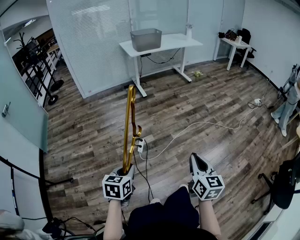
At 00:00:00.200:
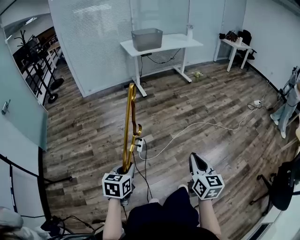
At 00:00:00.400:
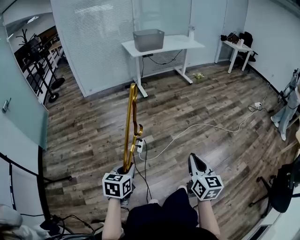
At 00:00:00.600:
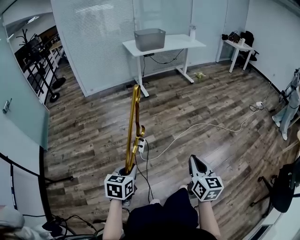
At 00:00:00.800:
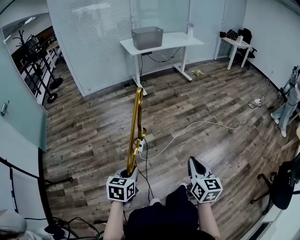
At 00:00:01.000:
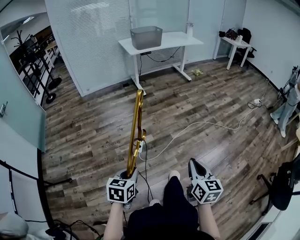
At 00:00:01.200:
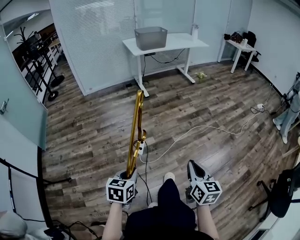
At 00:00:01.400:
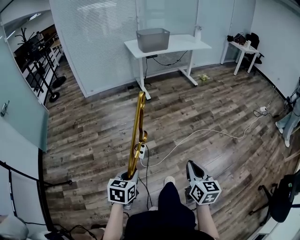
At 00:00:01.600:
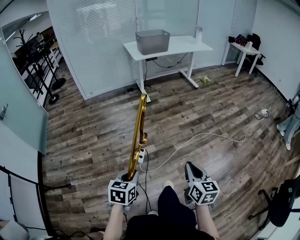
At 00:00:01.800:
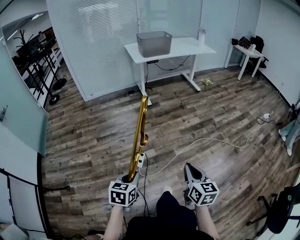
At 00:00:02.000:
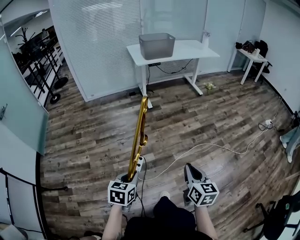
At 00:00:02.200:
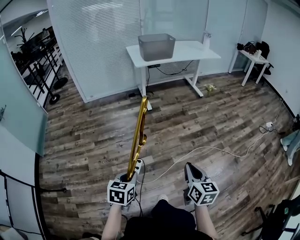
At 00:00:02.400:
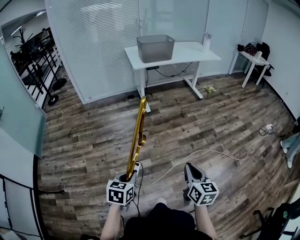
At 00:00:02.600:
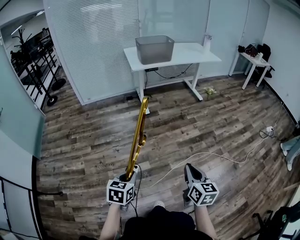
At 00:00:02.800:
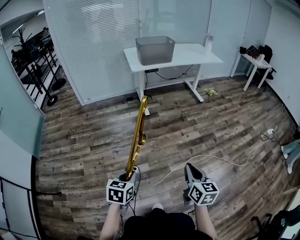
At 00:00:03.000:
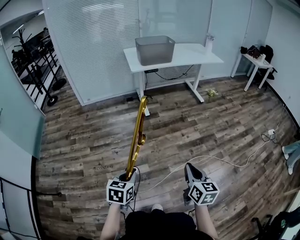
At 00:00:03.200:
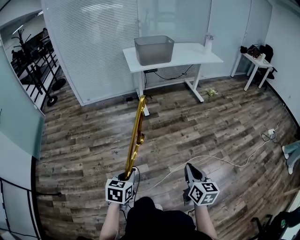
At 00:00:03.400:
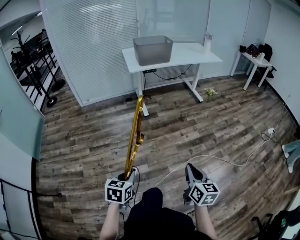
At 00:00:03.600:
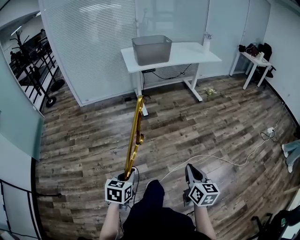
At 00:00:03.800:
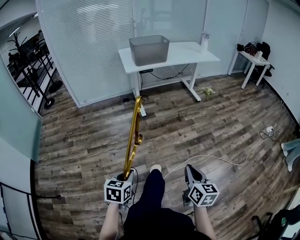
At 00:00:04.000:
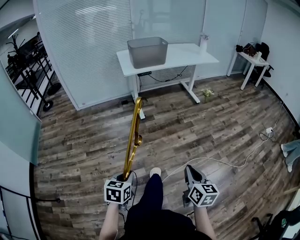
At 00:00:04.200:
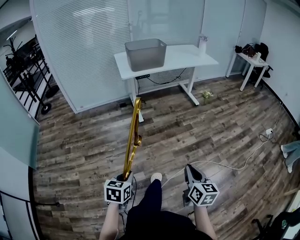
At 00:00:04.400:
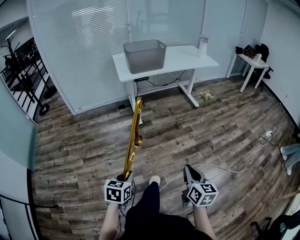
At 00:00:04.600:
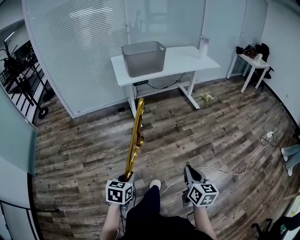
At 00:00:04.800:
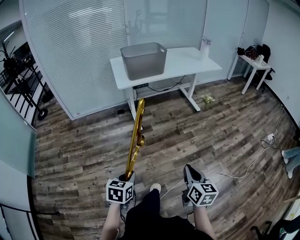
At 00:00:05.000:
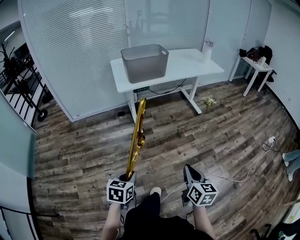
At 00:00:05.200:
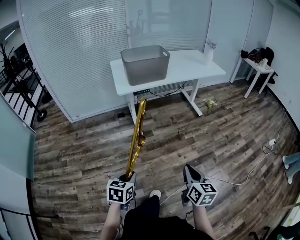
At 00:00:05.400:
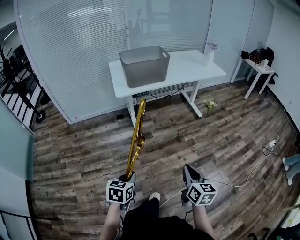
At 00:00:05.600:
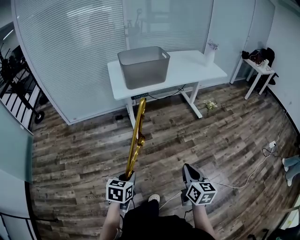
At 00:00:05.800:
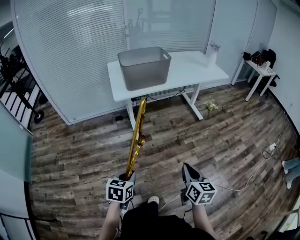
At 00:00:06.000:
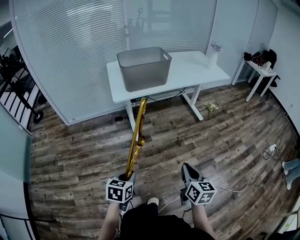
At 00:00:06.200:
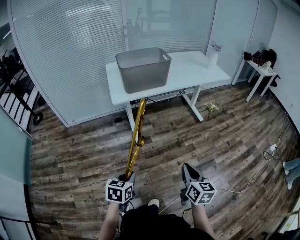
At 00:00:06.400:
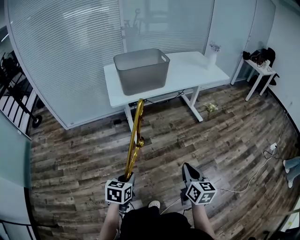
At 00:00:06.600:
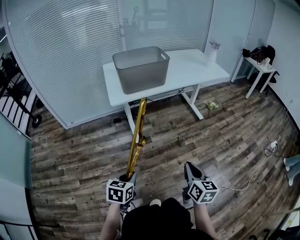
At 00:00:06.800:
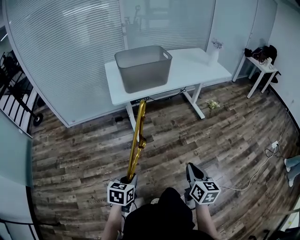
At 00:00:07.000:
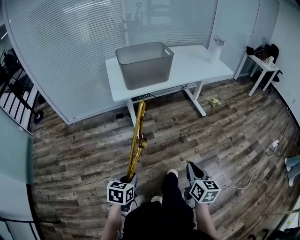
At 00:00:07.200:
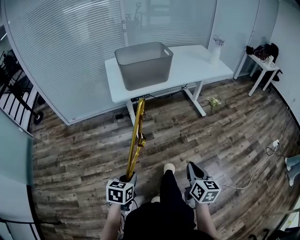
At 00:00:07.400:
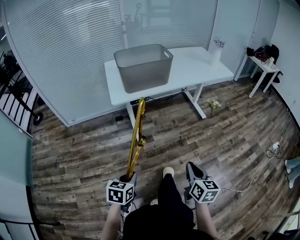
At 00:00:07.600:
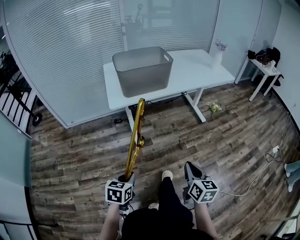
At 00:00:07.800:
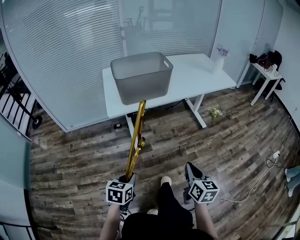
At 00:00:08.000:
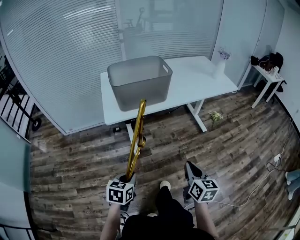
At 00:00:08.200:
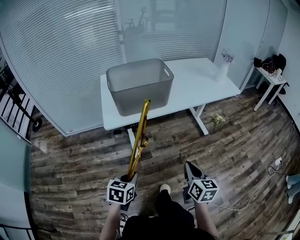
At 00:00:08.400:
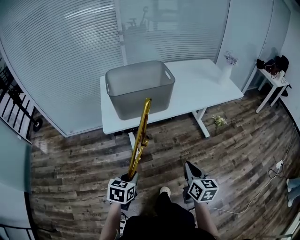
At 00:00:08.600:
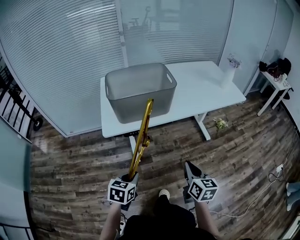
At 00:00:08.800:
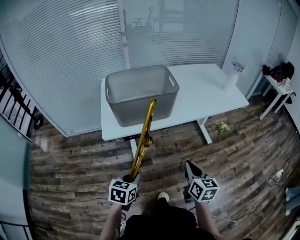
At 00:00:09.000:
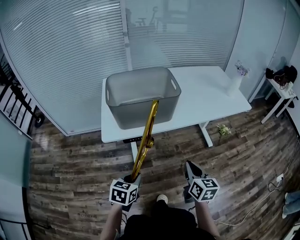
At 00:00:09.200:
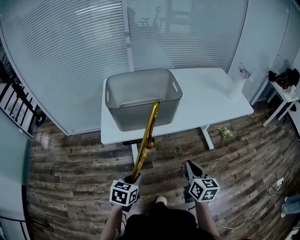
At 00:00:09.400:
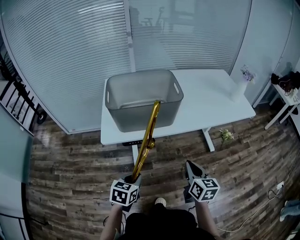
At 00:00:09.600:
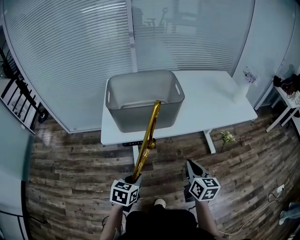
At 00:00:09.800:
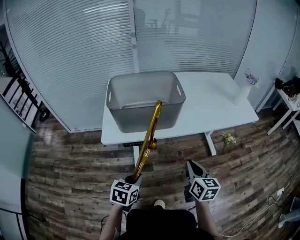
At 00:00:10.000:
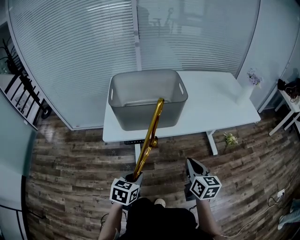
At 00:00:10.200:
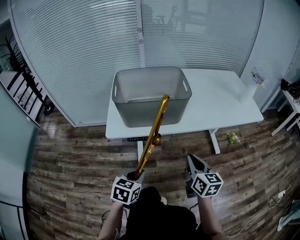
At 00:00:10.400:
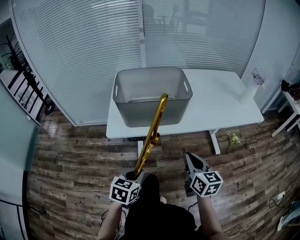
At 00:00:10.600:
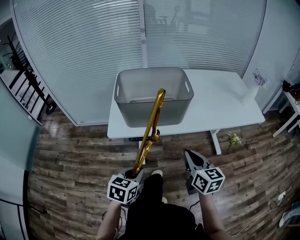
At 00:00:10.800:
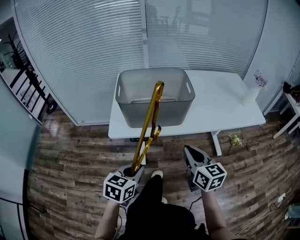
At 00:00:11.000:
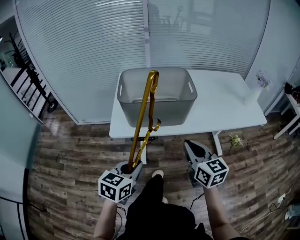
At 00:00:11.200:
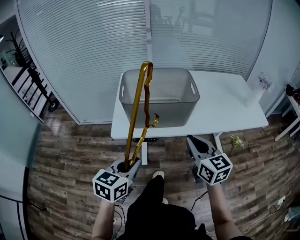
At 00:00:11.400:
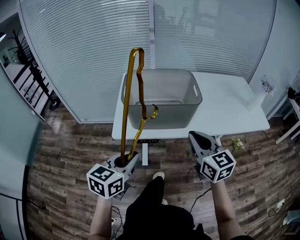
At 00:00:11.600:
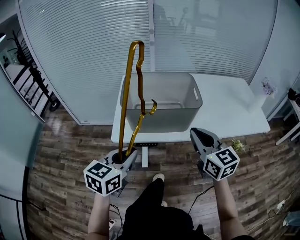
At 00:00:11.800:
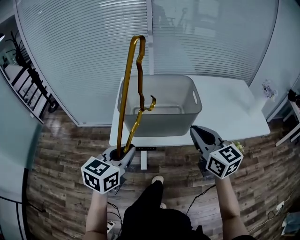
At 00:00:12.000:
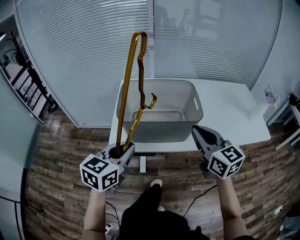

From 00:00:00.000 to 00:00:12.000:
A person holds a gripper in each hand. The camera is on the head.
From 00:00:00.000 to 00:00:01.600: The two grippers go roughly 15 cm forward.
From 00:00:01.600 to 00:00:03.000: The two grippers go roughly 25 cm forward.
From 00:00:03.000 to 00:00:04.400: The grippers both shift forward by approximately 10 cm.
From 00:00:04.400 to 00:00:06.000: The grippers both shift forward by about 30 cm.
From 00:00:06.000 to 00:00:07.600: Both grippers move forward, approximately 10 cm.
From 00:00:07.600 to 00:00:09.000: Both grippers move forward, about 25 cm.
From 00:00:09.000 to 00:00:10.400: The right gripper goes approximately 5 cm forward.
From 00:00:10.400 to 00:00:12.000: The grippers both shift upward and forward by approximately 20 cm. The right gripper changes its angle by some 20 degrees.

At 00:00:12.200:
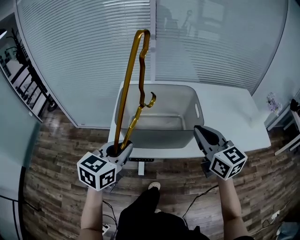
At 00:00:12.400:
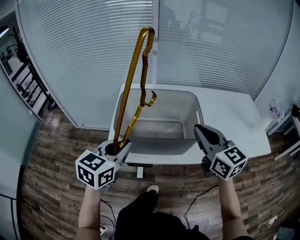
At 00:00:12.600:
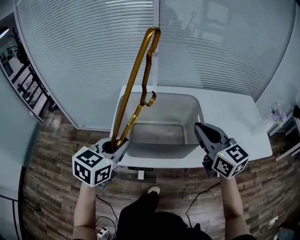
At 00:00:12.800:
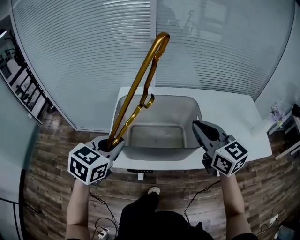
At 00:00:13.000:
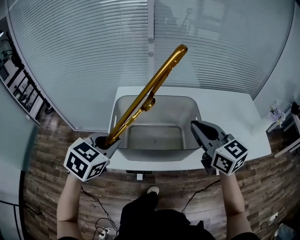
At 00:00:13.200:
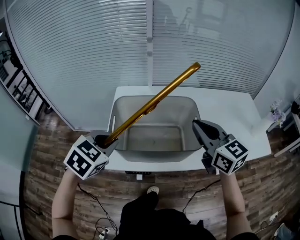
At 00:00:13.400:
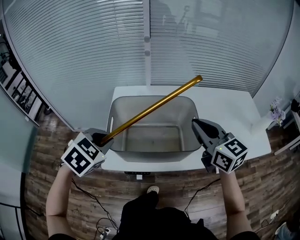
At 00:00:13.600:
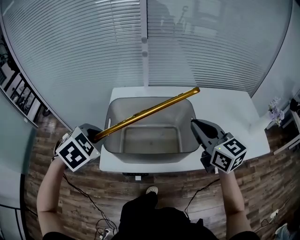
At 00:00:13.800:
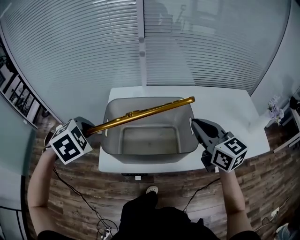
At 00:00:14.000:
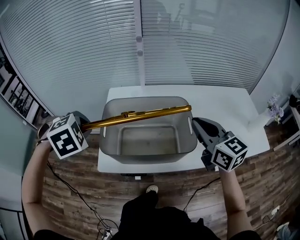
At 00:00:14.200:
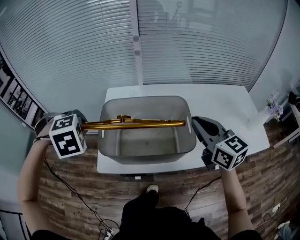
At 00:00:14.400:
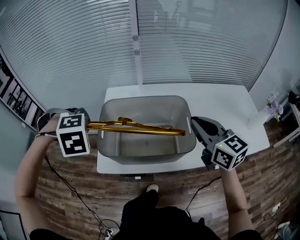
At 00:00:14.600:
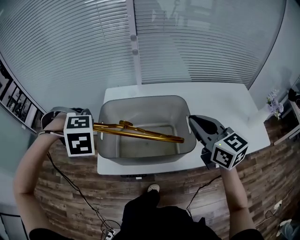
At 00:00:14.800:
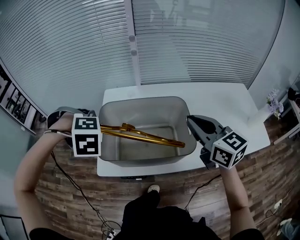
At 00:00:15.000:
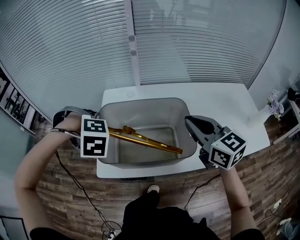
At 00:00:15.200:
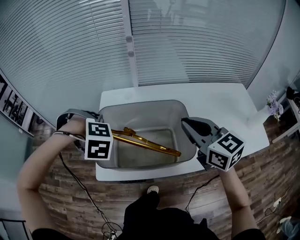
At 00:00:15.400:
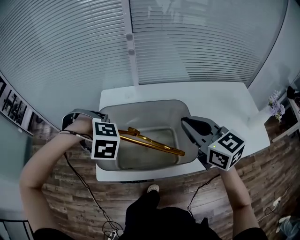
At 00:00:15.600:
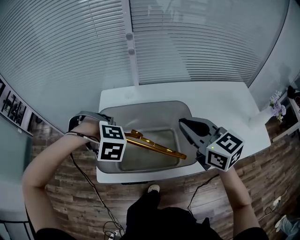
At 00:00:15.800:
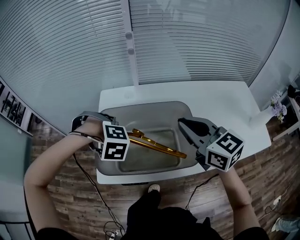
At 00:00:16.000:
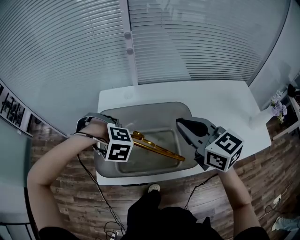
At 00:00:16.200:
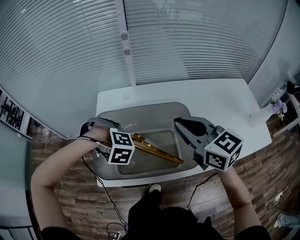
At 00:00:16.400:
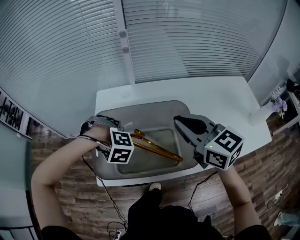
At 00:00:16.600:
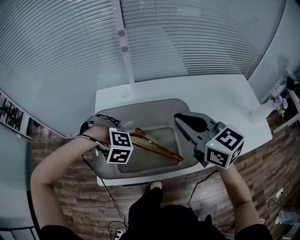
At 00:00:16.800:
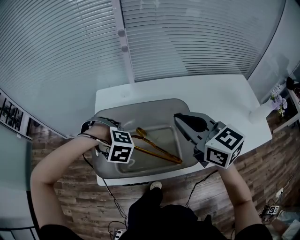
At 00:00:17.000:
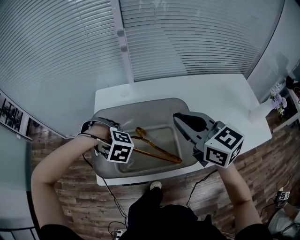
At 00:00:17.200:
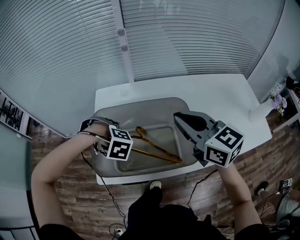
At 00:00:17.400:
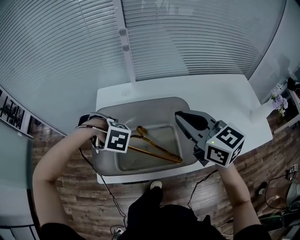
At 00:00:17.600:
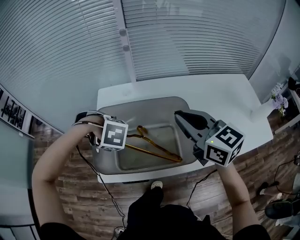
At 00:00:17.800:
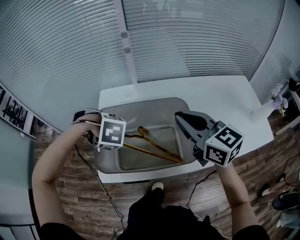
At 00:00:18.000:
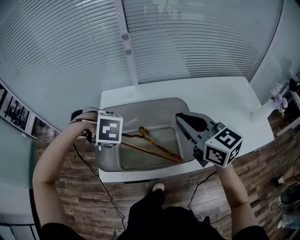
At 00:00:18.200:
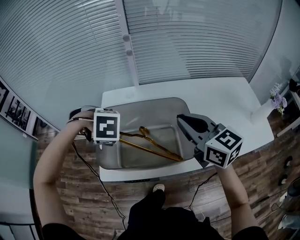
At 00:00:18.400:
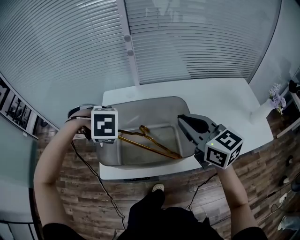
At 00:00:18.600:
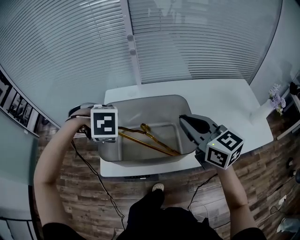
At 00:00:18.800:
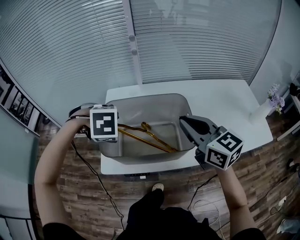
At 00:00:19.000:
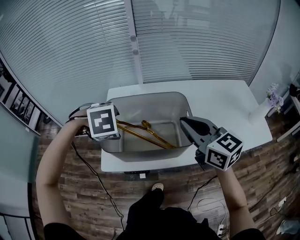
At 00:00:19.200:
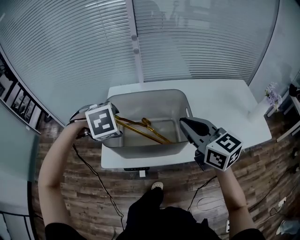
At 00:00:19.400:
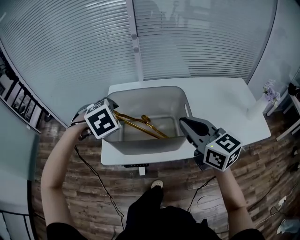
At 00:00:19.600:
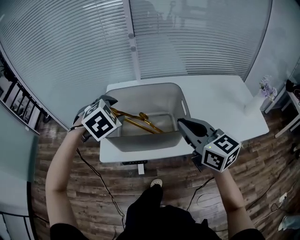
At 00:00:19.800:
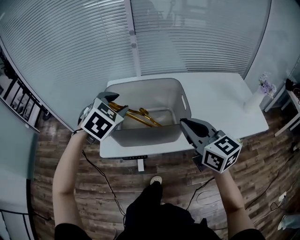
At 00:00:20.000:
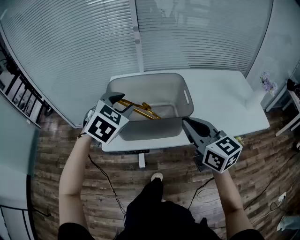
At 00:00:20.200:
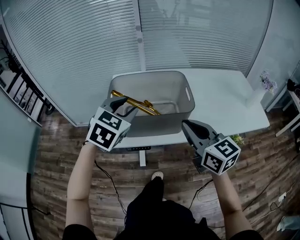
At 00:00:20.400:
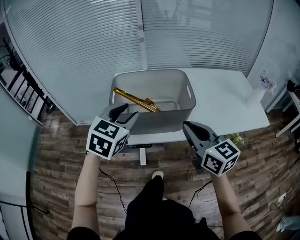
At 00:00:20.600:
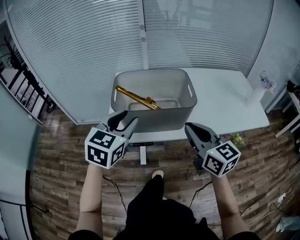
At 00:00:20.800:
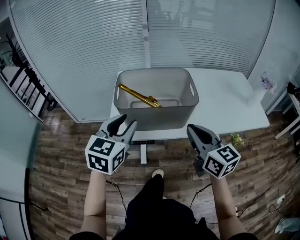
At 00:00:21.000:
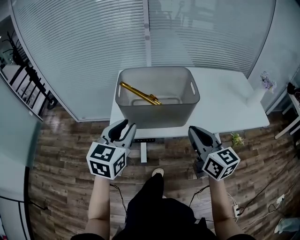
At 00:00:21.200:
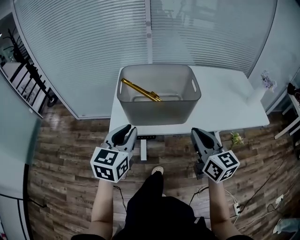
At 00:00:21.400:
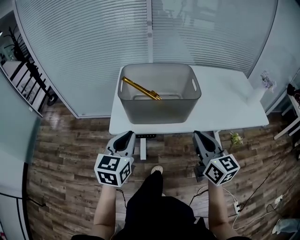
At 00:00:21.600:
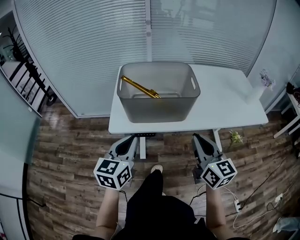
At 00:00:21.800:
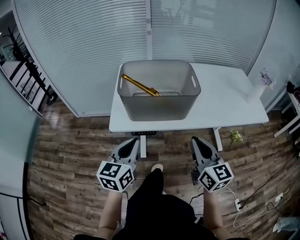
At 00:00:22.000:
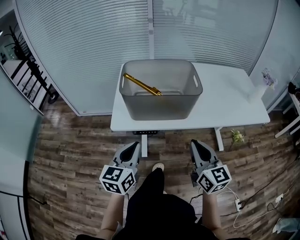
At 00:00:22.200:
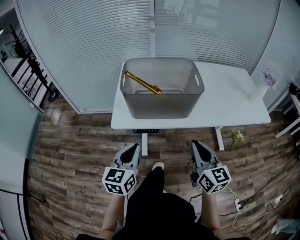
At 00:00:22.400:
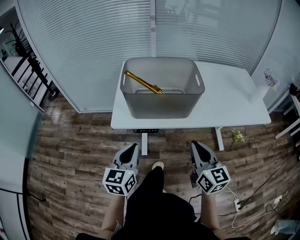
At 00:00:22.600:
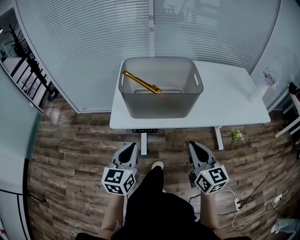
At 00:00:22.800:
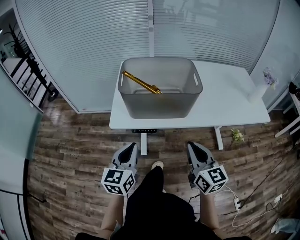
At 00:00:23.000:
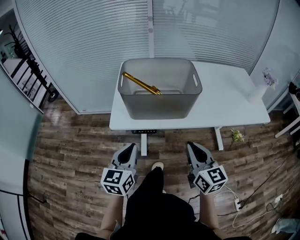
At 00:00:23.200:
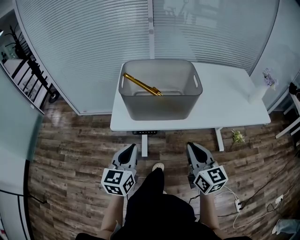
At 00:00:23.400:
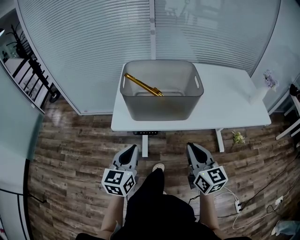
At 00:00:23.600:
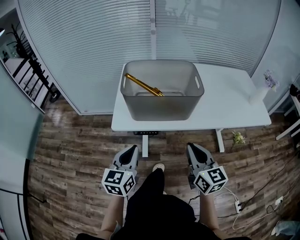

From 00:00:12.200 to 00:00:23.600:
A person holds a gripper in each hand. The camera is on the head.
From 00:00:12.200 to 00:00:13.600: The right gripper goes roughly 10 cm forward. Meanwhile the left gripper travels forward and to the left by some 15 cm, and points its fingers roughly 40 degrees further downward.
From 00:00:13.600 to 00:00:15.000: The left gripper moves about 5 cm, and twists approximately 40 degrees clockwise, seen from behind.
From 00:00:15.000 to 00:00:16.400: The left gripper heads downward and to the right, covering approximately 15 cm.
From 00:00:16.400 to 00:00:17.800: The left gripper shifts by about 5 cm, changes its angle by about 30 degrees, and opens its fingers.
From 00:00:17.800 to 00:00:19.400: The left gripper shifts roughly 10 cm upward, and rotates roughly 50 degrees; the right gripper changes place by some 10 cm.
From 00:00:19.400 to 00:00:20.800: The right gripper heads backward and downward, covering some 15 cm; the left gripper moves backward, about 15 cm, and tips its fingers upward by roughly 40 degrees.
From 00:00:20.800 to 00:00:22.200: The right gripper is displaced backward and downward by some 10 cm; the left gripper goes some 15 cm downward and backward, and closes up.
From 00:00:22.200 to 00:00:23.600: The grippers stay close to where they were, moving slightly.
